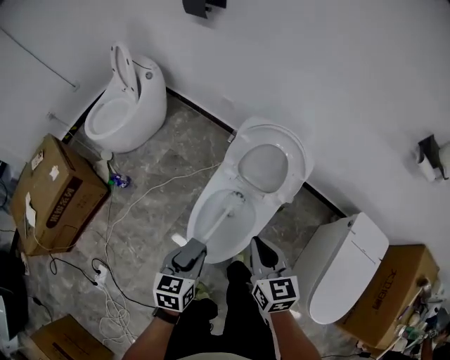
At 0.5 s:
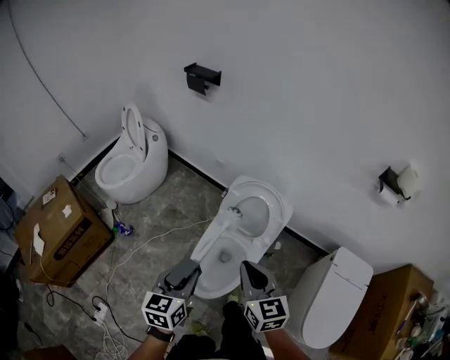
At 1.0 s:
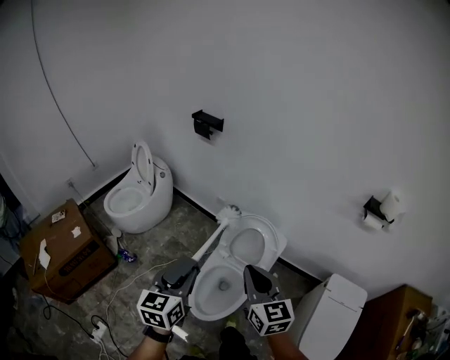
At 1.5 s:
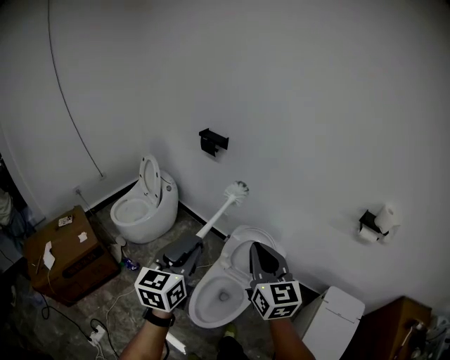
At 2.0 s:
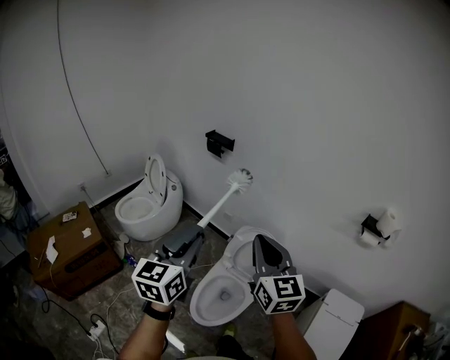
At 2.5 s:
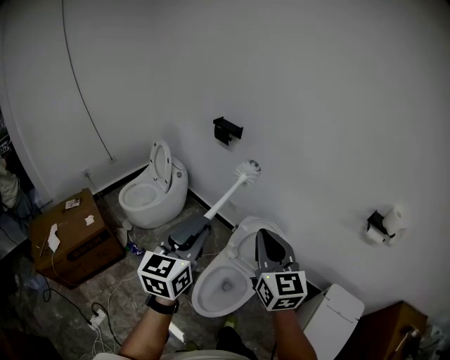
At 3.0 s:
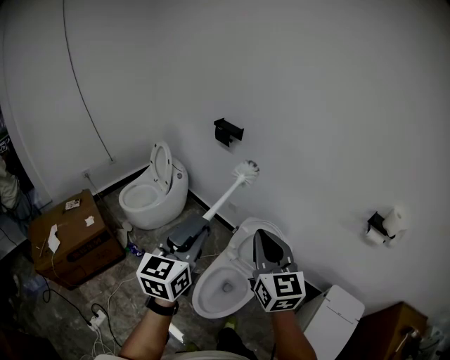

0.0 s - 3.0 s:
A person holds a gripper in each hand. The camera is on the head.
0.0 s - 1.5 s: Both grippers move upward, roughly 40 cm. The left gripper tips its fingers upward by about 30 degrees. The right gripper swivels approximately 30 degrees.
1.5 s - 3.0 s: The grippers make only small movements.

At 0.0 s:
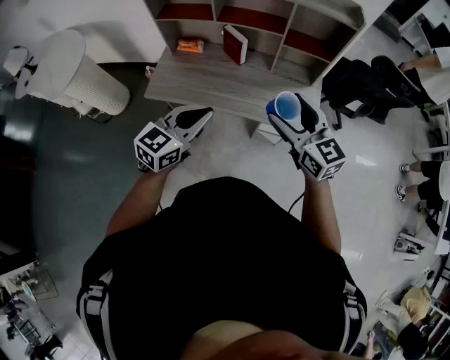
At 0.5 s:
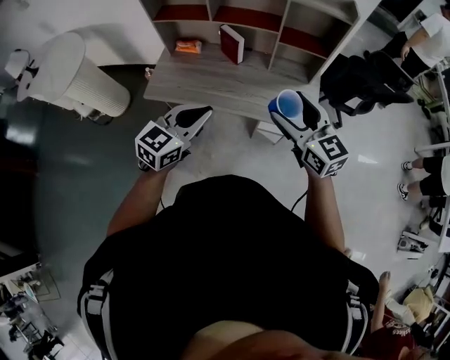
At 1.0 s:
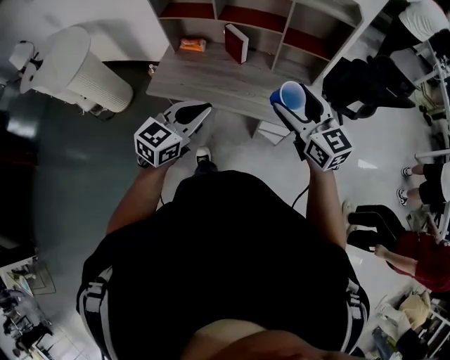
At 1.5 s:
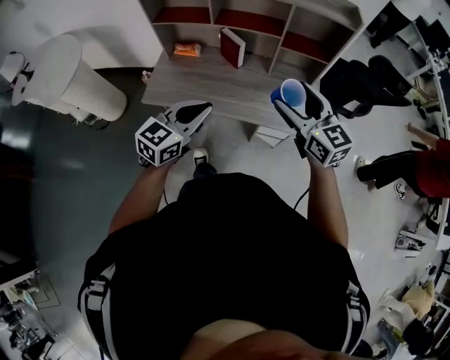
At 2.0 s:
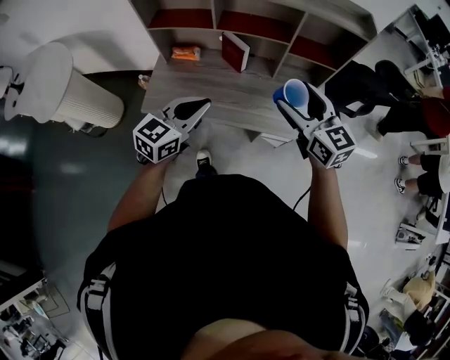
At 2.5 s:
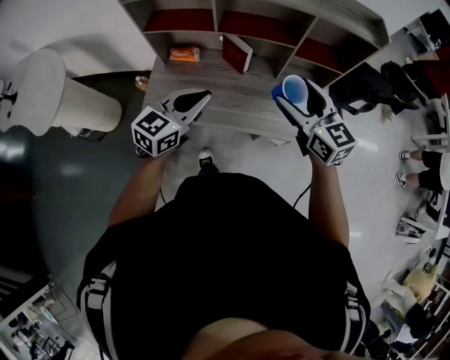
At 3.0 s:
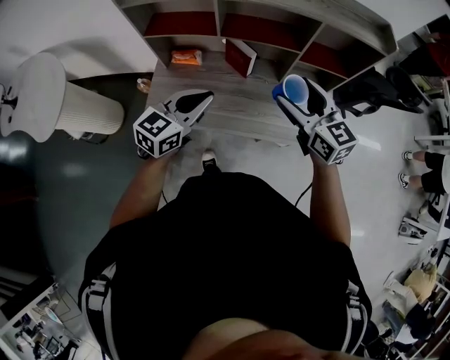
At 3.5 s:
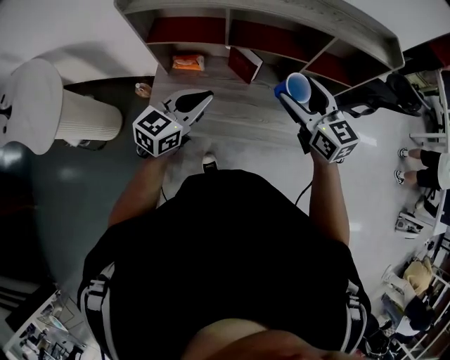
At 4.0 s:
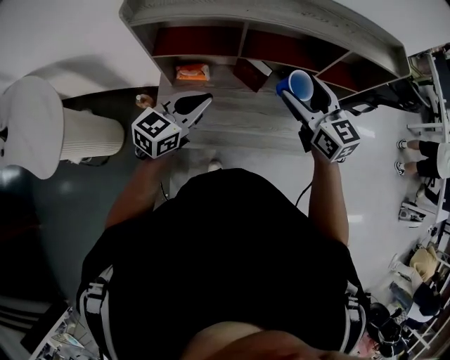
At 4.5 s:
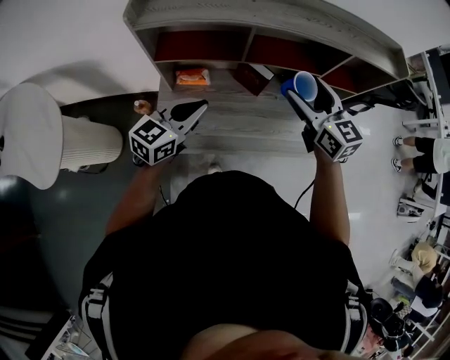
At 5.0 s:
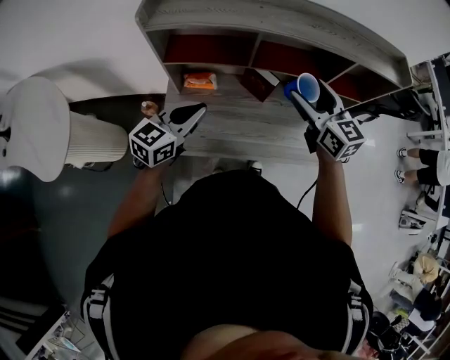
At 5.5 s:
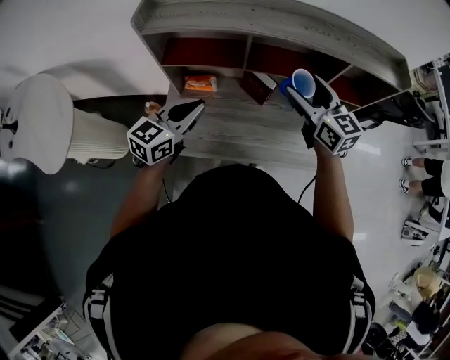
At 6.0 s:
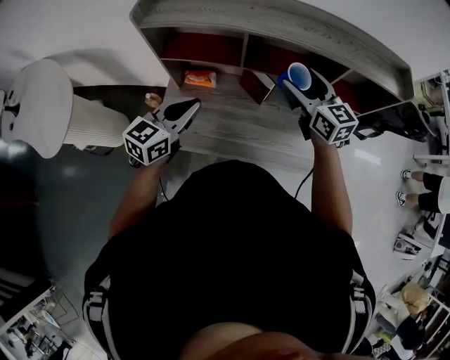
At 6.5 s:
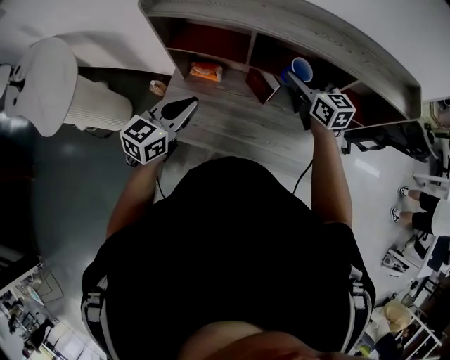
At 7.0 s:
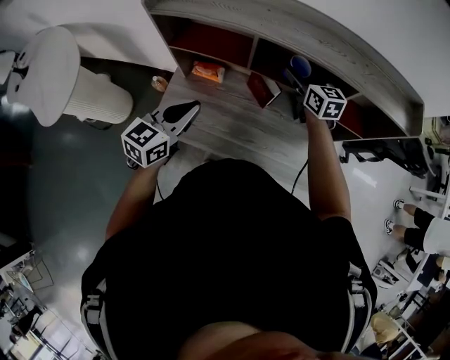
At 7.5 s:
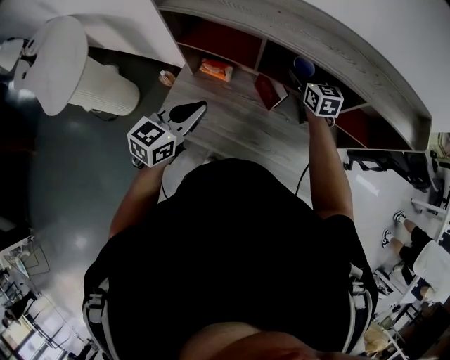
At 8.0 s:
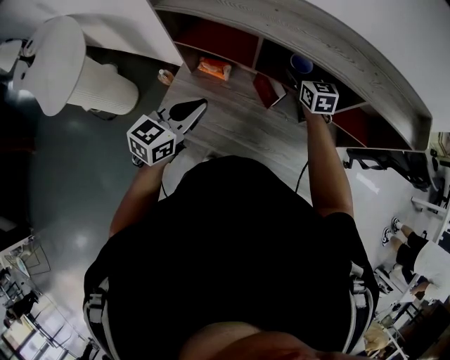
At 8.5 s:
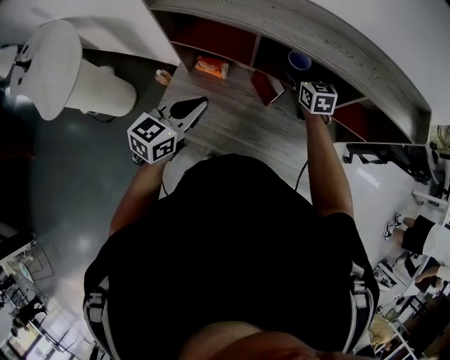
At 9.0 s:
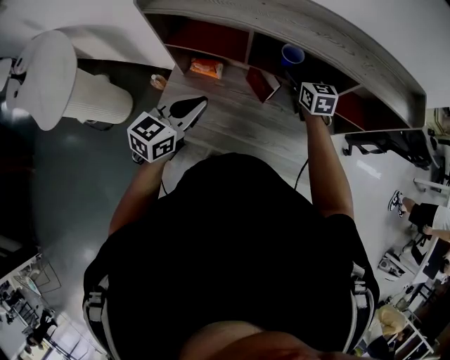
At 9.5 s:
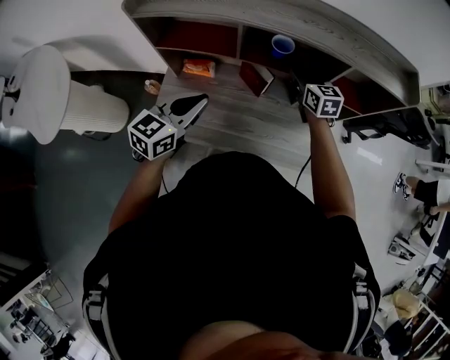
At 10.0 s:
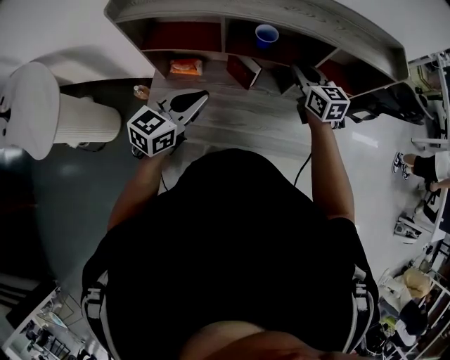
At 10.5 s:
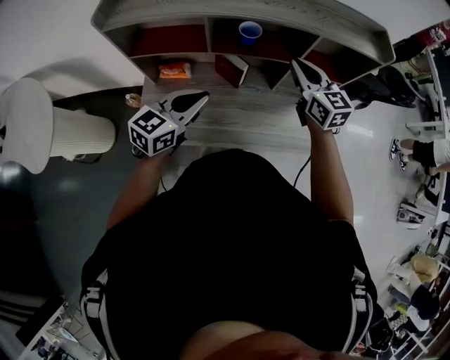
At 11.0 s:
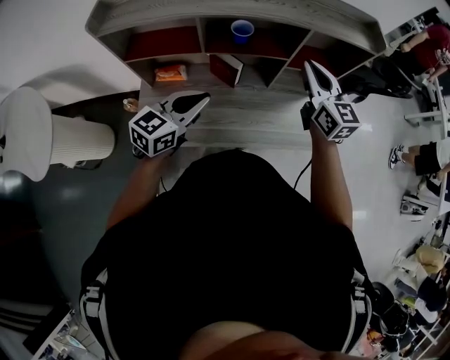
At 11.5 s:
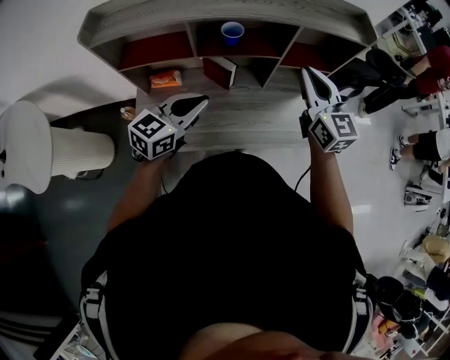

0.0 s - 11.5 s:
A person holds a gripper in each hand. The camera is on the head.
0.0 s - 2.0 s: The left gripper is displaced forward and to the left by about 15 cm. Meanwhile the right gripper moves forward, some 10 cm.
2.0 s - 4.0 s: The grippers both shift forward and to the left by approximately 25 cm.
4.0 s - 6.0 s: The right gripper is displaced forward by roughly 10 cm.
6.0 s - 7.5 s: The right gripper goes about 20 cm forward and downward.
7.5 s - 9.5 s: The right gripper moves backward and to the right, some 10 cm, and closes its fingers.
9.5 s - 11.5 s: The right gripper moves upward, backward and to the right, roughly 25 cm, changes its angle by about 20 degrees, and closes. Meanwhile the left gripper shifts about 10 cm to the right.

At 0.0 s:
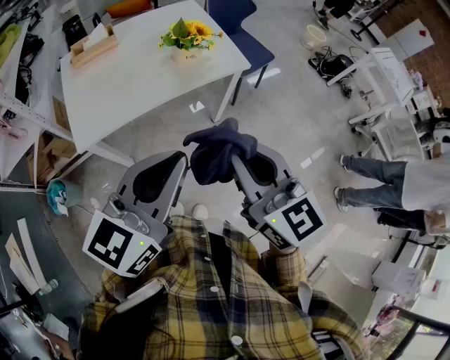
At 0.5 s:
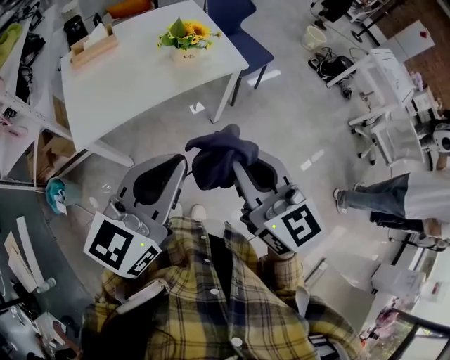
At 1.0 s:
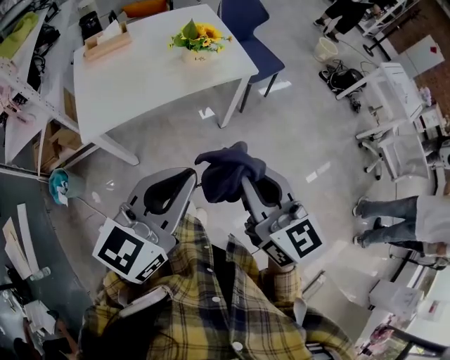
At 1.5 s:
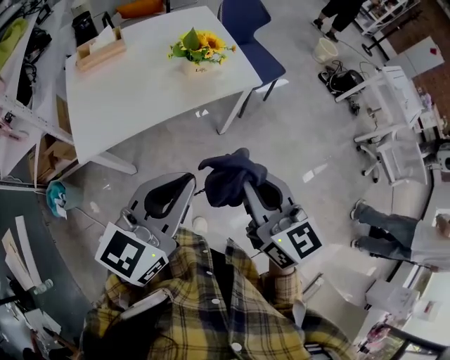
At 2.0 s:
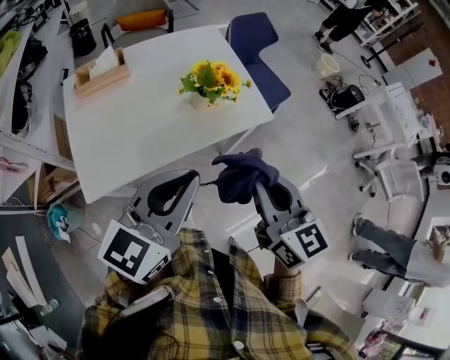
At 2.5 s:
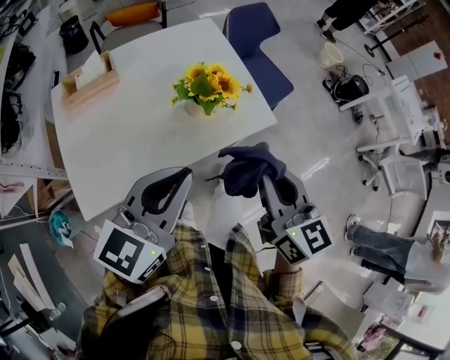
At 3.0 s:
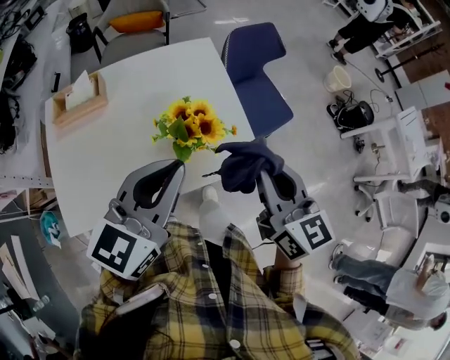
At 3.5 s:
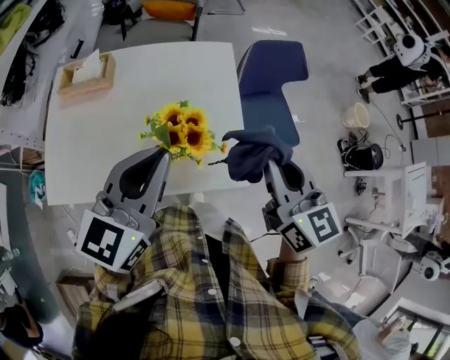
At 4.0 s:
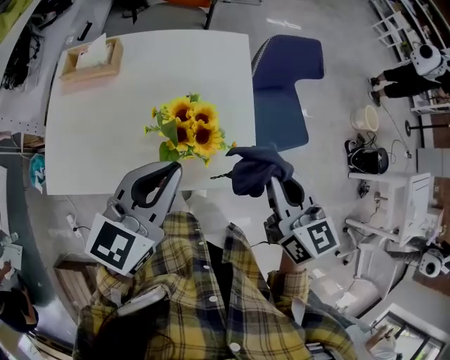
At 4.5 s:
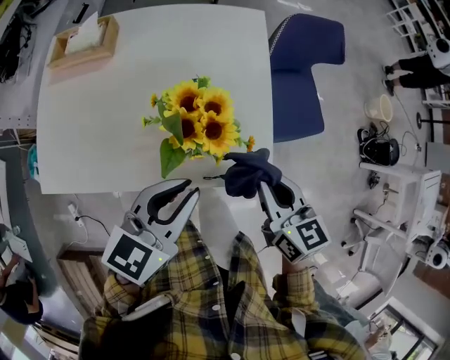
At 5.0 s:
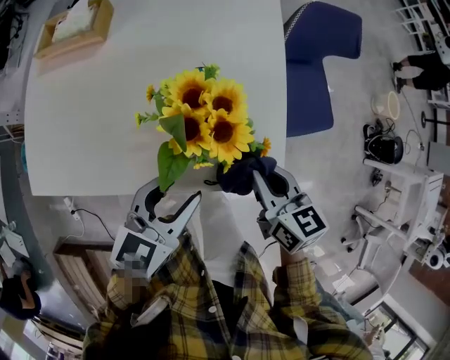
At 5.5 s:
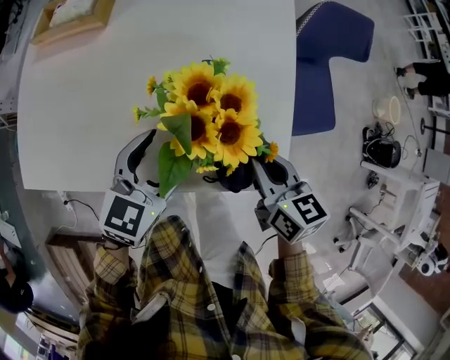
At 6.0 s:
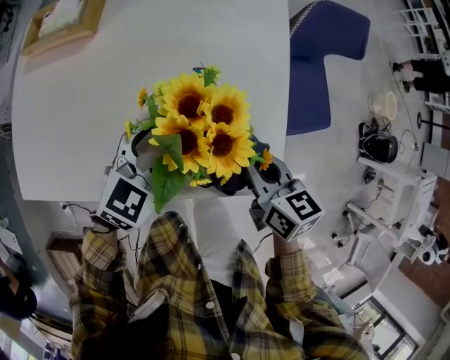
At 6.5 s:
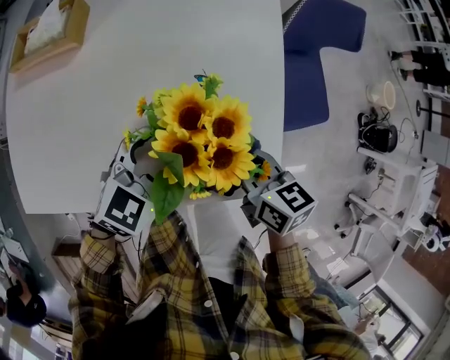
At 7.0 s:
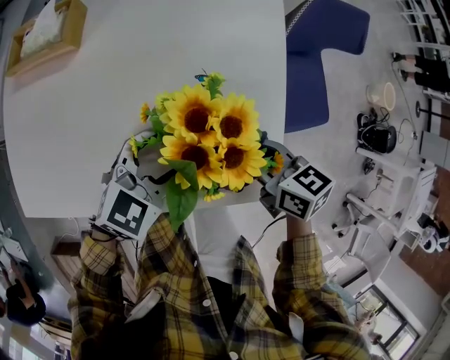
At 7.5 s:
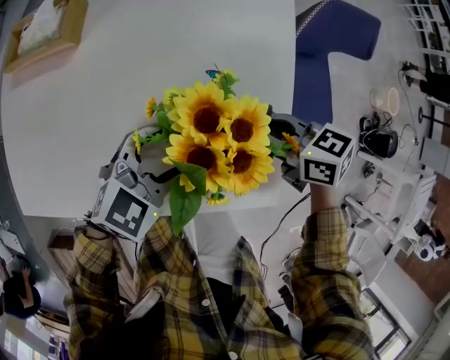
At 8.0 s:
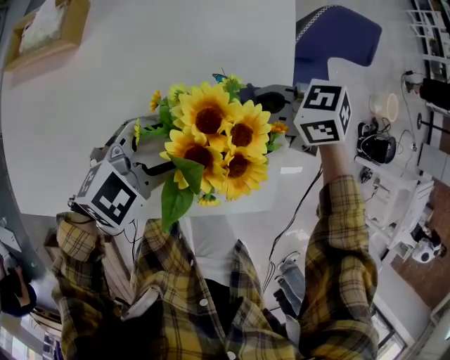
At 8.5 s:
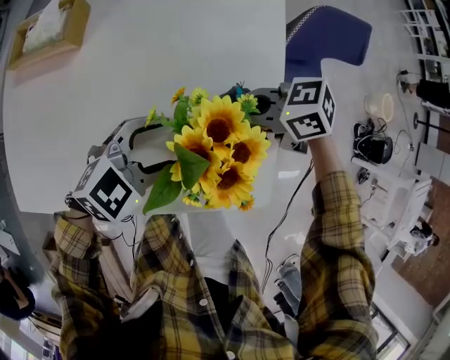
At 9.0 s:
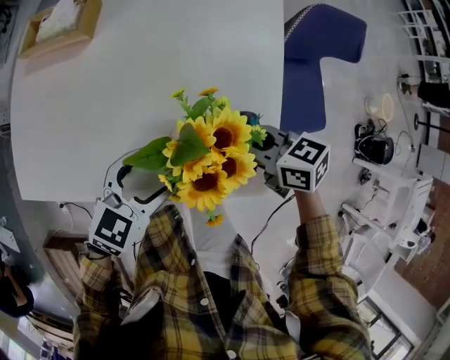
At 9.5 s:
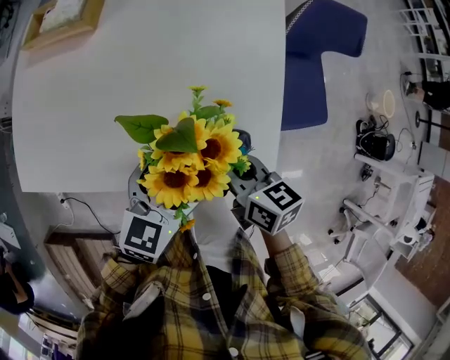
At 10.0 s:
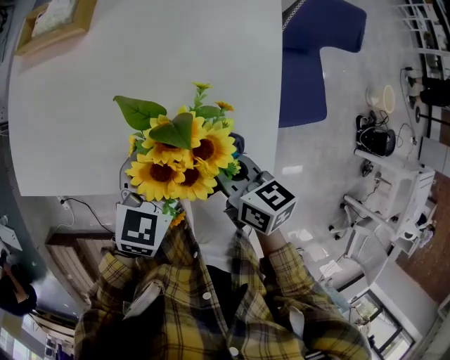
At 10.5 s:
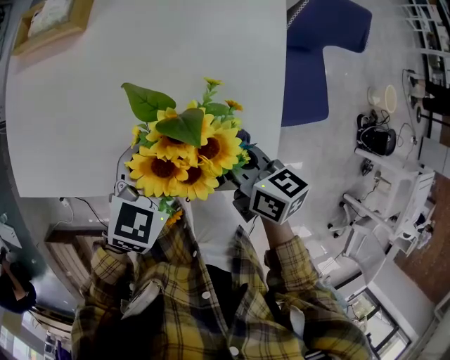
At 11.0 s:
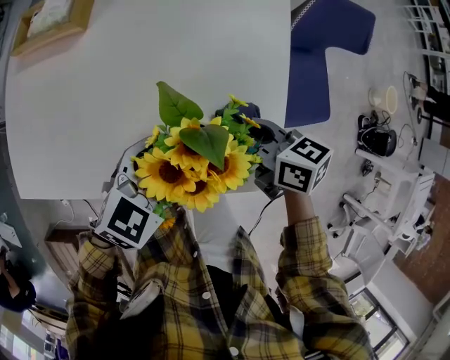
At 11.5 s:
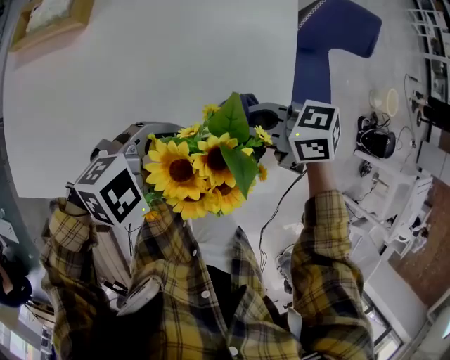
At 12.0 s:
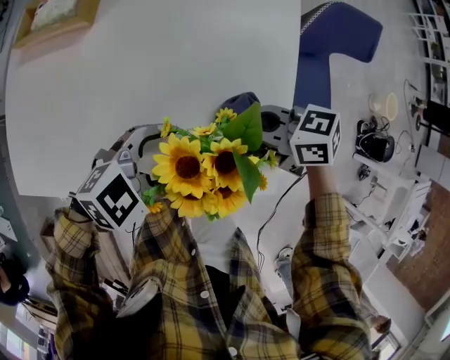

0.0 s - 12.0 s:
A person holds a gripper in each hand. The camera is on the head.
0.0 s - 2.0 s: The grippers both shift forward by roughly 15 cm.
2.0 s - 4.0 s: The right gripper shifts some 35 cm forward and to the right, and swivels roughly 20 degrees, while the left gripper is displaced forward by roughly 25 cm, and changes its angle by roughly 30 degrees.
4.0 s - 6.0 s: Both grippers move downward, roughly 25 cm. The left gripper swivels roughly 20 degrees, and opens, while the right gripper swivels some 20 degrees.
6.0 s - 8.0 s: The right gripper moves roughly 10 cm, and rotates some 50 degrees.
8.0 s - 10.0 s: The left gripper changes place by some 5 cm, and rotates about 40 degrees. Meanwhile the right gripper shifts by some 15 cm, and changes its angle by approximately 40 degrees.
10.0 s - 12.0 s: The left gripper rotates approximately 50 degrees. The right gripper ends up some 10 cm from where it was, and changes its angle by approximately 40 degrees.
